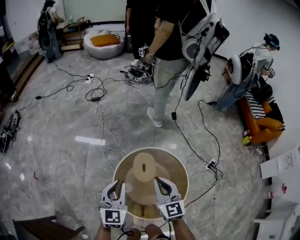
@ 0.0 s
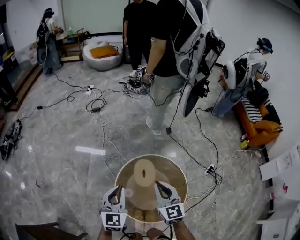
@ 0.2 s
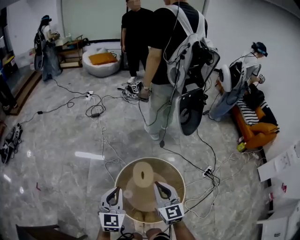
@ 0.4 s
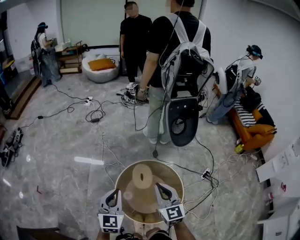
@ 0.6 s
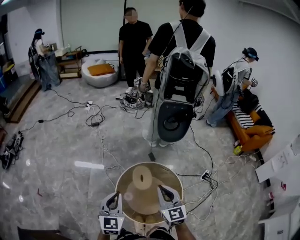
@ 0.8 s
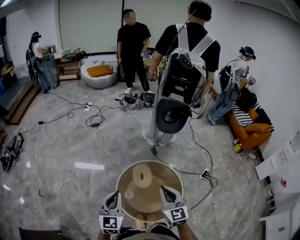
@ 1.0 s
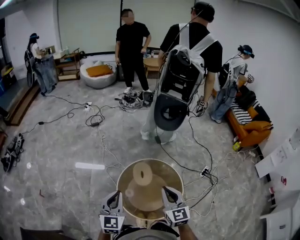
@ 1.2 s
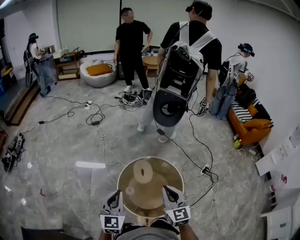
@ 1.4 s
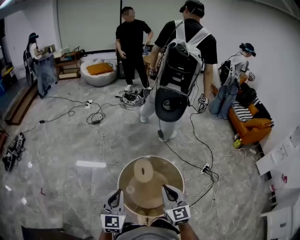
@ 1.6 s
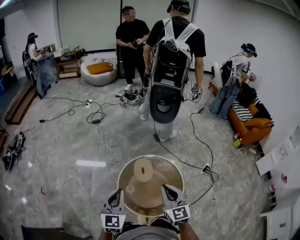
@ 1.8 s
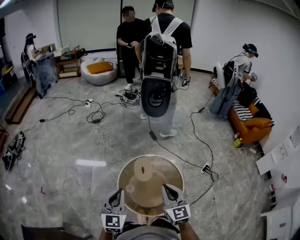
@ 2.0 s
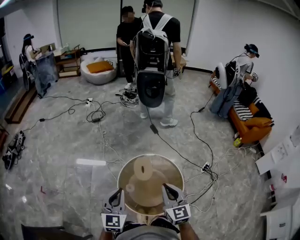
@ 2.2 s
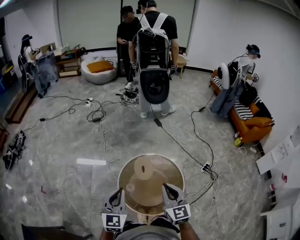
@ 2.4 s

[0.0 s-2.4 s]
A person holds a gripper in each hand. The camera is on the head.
0.0 to 1.2 s: The grippers both shift backward and upward by approximately 20 cm.
1.2 to 2.4 s: The grippers stay close to where they were, moving slightly.

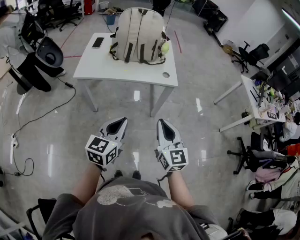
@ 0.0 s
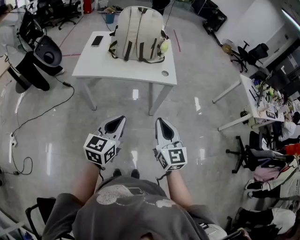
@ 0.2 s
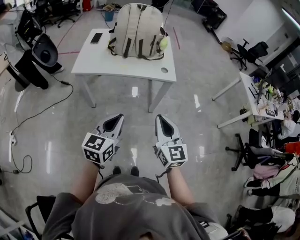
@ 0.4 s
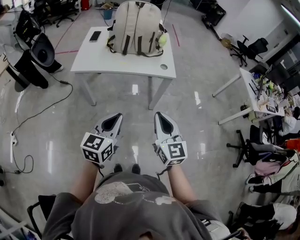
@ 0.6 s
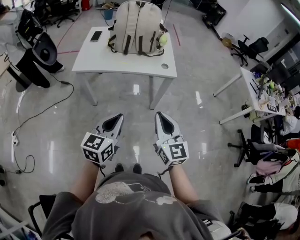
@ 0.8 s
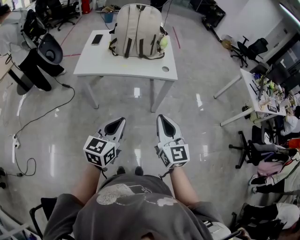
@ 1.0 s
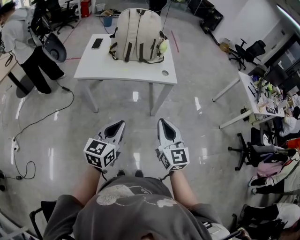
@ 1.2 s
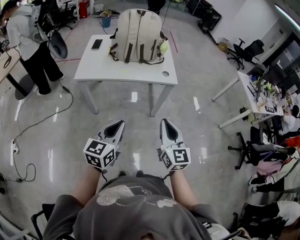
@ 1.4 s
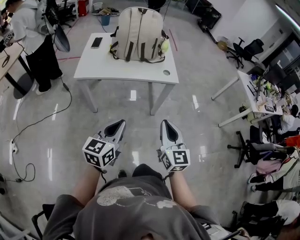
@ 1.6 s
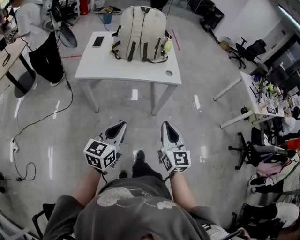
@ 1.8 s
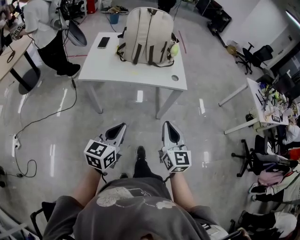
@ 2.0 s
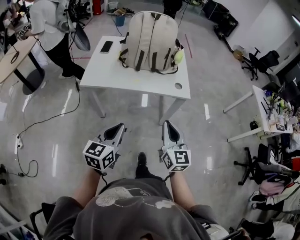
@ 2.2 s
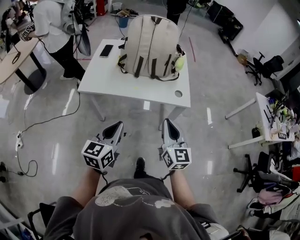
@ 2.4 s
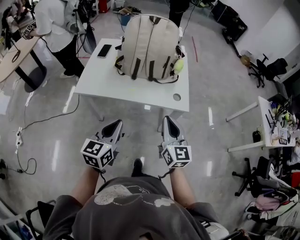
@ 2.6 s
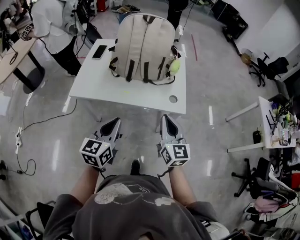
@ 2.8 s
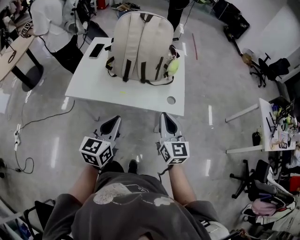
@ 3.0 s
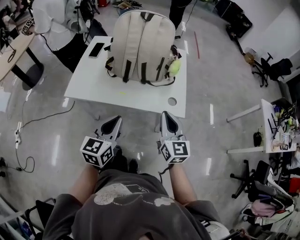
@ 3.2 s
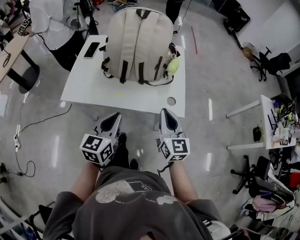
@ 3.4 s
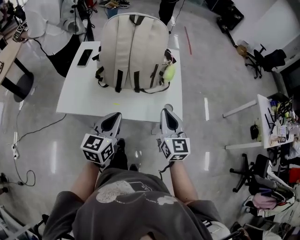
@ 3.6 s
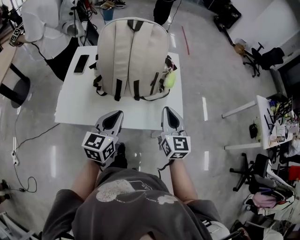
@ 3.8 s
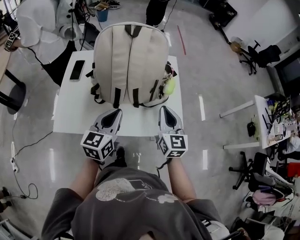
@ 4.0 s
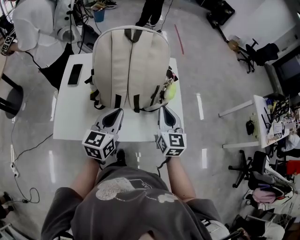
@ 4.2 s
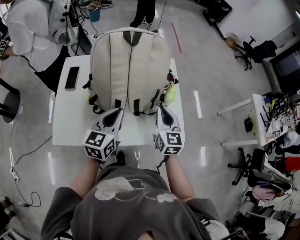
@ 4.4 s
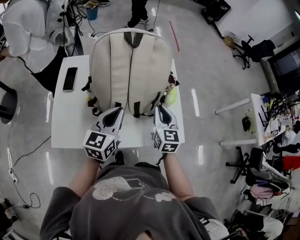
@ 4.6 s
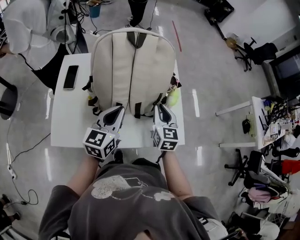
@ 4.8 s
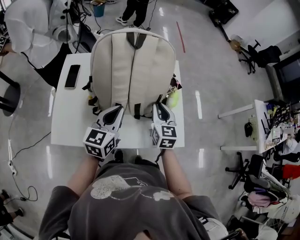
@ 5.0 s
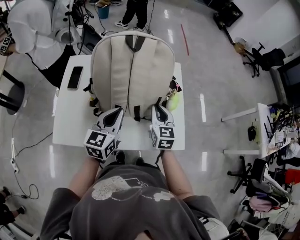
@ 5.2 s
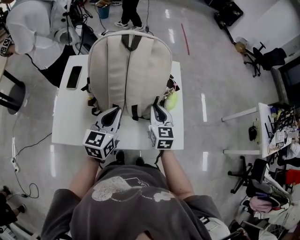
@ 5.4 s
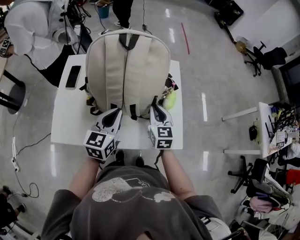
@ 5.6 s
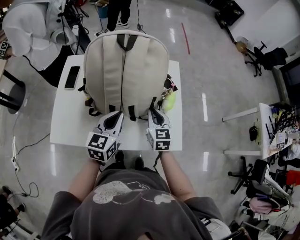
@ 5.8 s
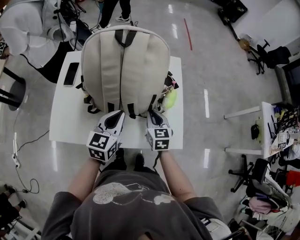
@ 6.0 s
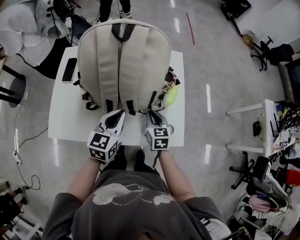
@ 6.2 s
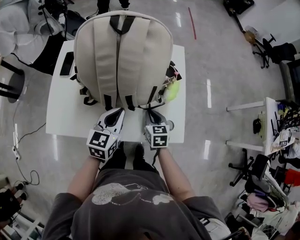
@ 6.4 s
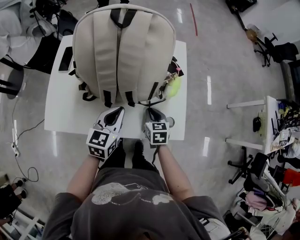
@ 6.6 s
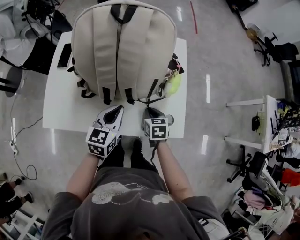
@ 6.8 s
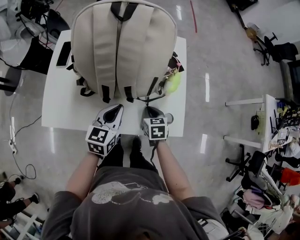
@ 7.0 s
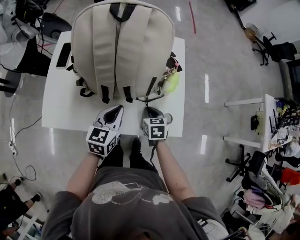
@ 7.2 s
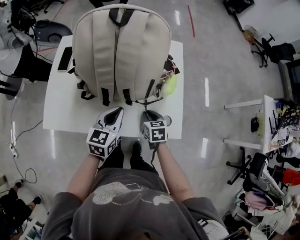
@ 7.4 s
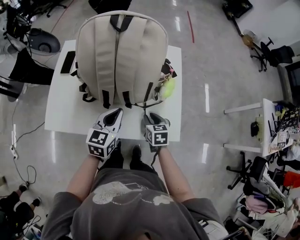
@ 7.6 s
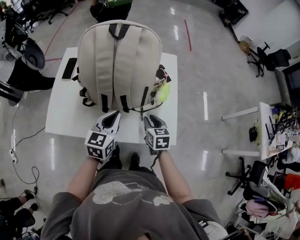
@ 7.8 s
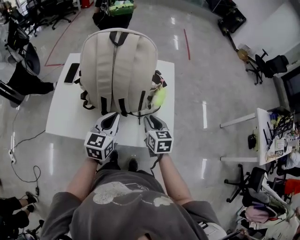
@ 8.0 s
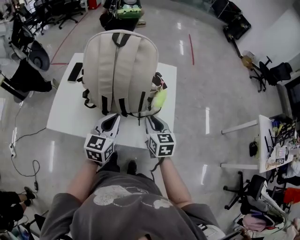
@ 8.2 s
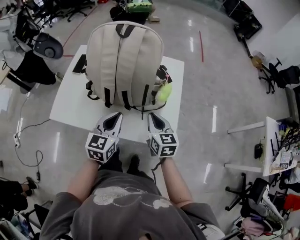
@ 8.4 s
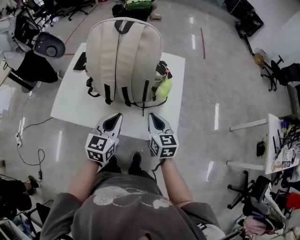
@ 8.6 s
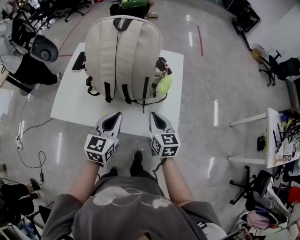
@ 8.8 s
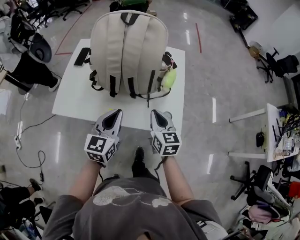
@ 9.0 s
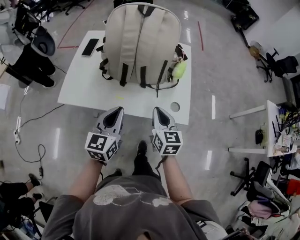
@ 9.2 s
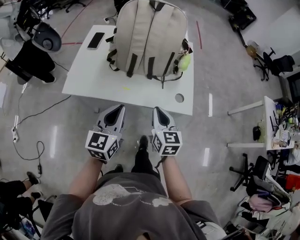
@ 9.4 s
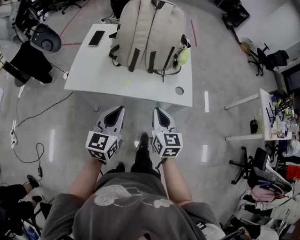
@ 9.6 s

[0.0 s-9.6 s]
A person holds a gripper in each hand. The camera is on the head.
0.0 to 1.6 s: The left gripper changes place by some 5 cm.
1.6 to 3.2 s: The two grippers go some 30 cm forward.
3.2 to 4.8 s: The two grippers go about 30 cm forward. The right gripper turns by about 20 degrees.
4.8 to 6.4 s: The left gripper travels downward and to the right by approximately 10 cm, while the right gripper travels downward by some 15 cm, and swivels roughly 20 degrees.
6.4 to 8.0 s: The right gripper heads upward, covering approximately 10 cm; the left gripper changes place by about 5 cm.
8.0 to 9.6 s: Both grippers move backward and to the left, about 25 cm. The right gripper closes up.

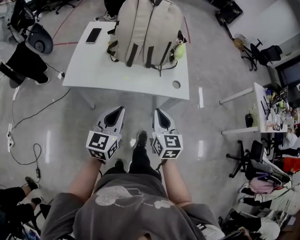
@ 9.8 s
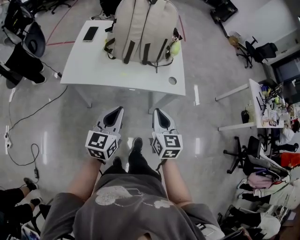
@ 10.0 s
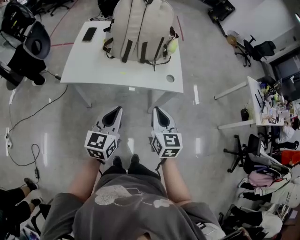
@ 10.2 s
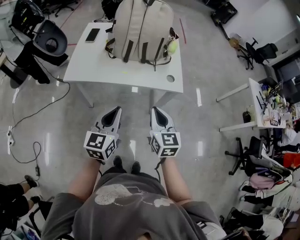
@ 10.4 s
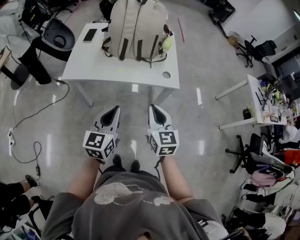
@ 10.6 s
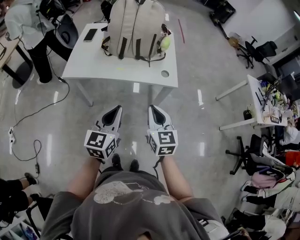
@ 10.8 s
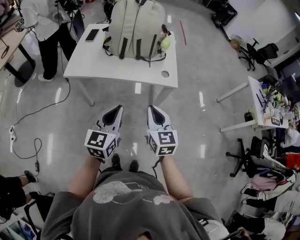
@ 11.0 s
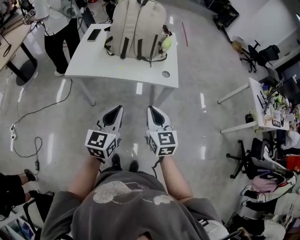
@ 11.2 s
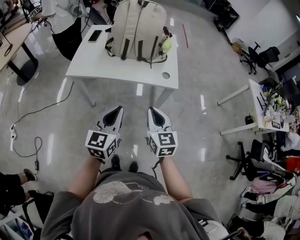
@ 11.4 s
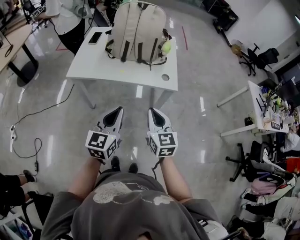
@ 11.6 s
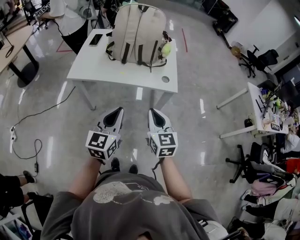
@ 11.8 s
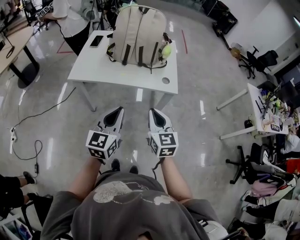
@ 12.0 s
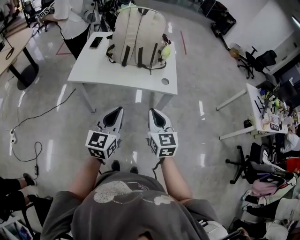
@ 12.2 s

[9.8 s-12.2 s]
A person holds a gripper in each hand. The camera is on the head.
9.8 to 11.0 s: The right gripper heads backward, covering approximately 10 cm. Meanwhile the left gripper moves backward and to the right, roughly 15 cm.
11.0 to 12.2 s: The grippers make only small movements.

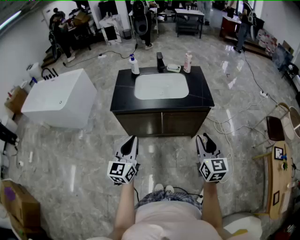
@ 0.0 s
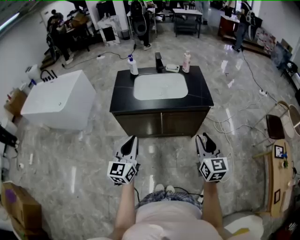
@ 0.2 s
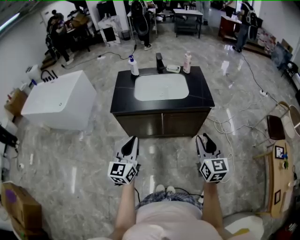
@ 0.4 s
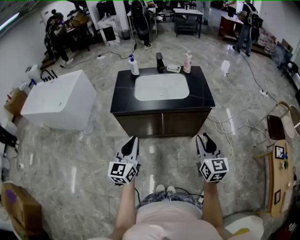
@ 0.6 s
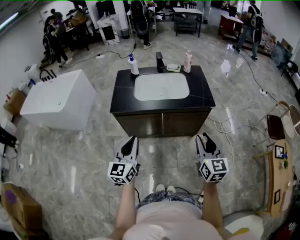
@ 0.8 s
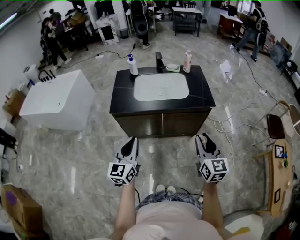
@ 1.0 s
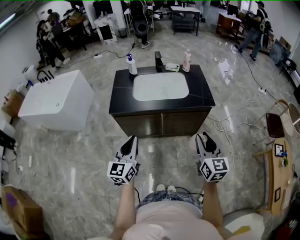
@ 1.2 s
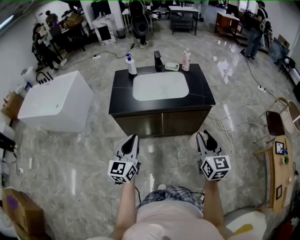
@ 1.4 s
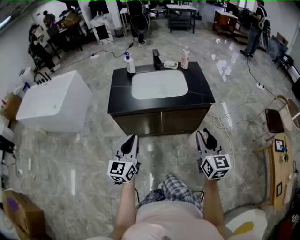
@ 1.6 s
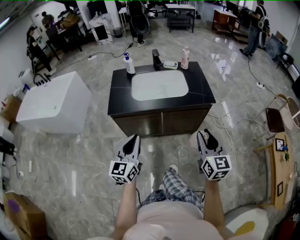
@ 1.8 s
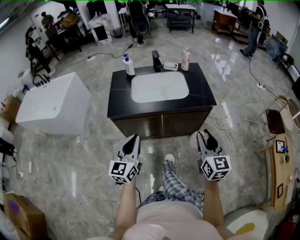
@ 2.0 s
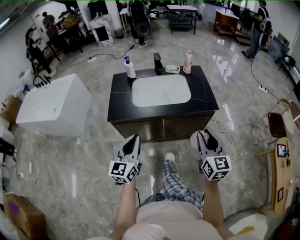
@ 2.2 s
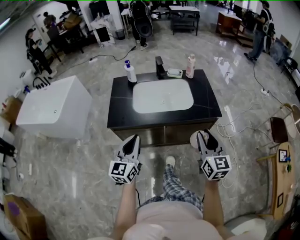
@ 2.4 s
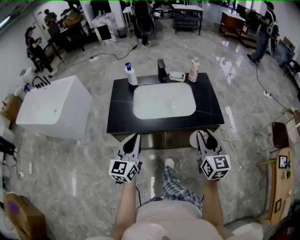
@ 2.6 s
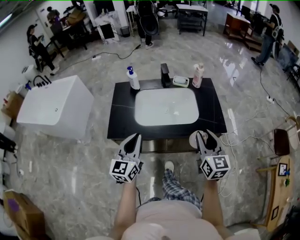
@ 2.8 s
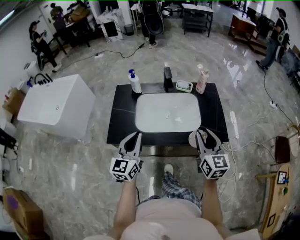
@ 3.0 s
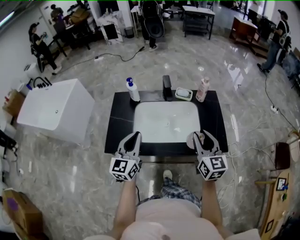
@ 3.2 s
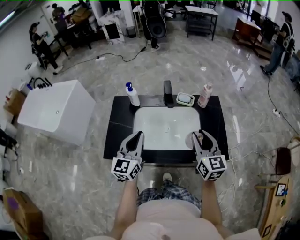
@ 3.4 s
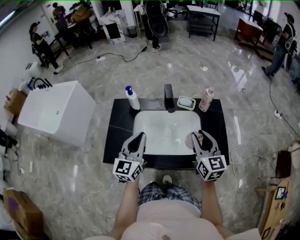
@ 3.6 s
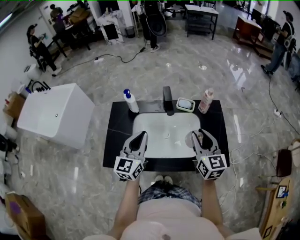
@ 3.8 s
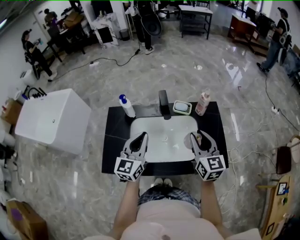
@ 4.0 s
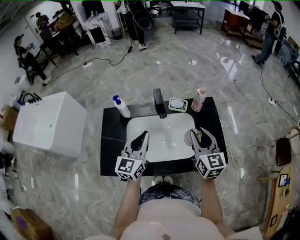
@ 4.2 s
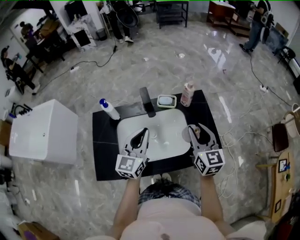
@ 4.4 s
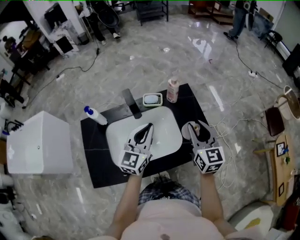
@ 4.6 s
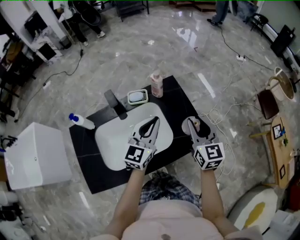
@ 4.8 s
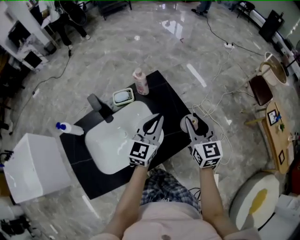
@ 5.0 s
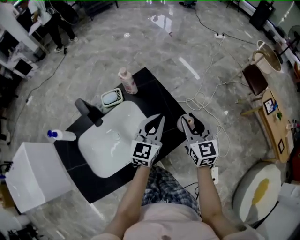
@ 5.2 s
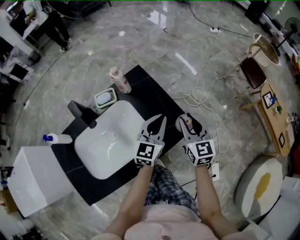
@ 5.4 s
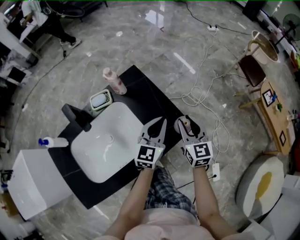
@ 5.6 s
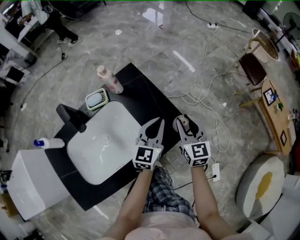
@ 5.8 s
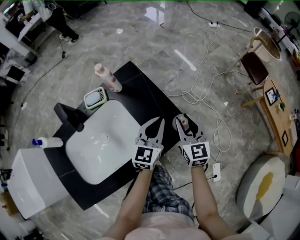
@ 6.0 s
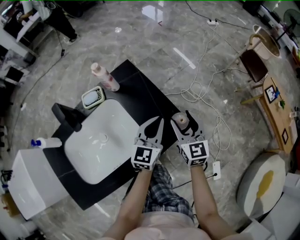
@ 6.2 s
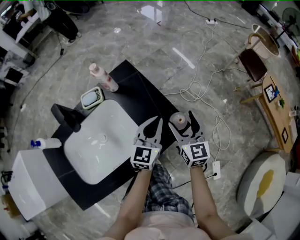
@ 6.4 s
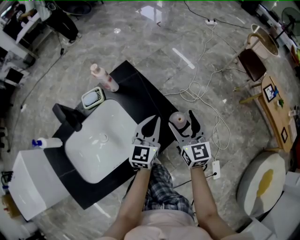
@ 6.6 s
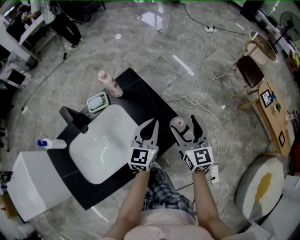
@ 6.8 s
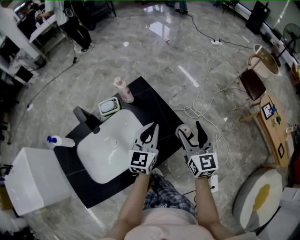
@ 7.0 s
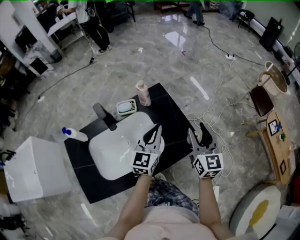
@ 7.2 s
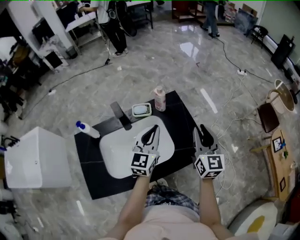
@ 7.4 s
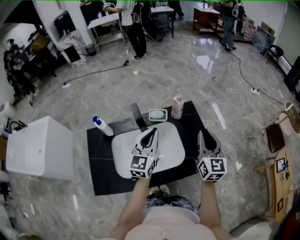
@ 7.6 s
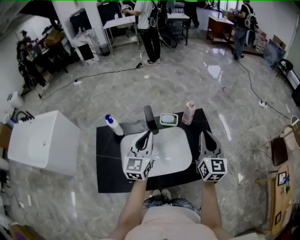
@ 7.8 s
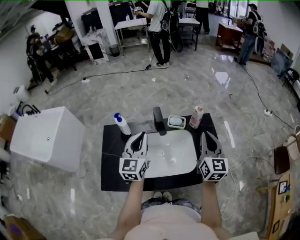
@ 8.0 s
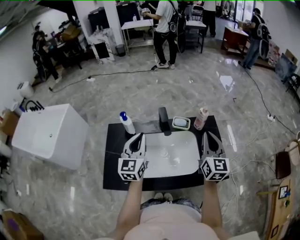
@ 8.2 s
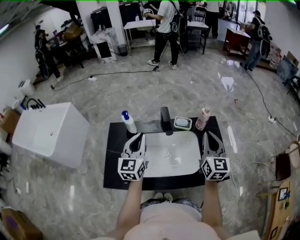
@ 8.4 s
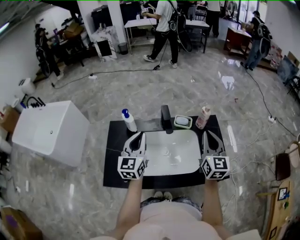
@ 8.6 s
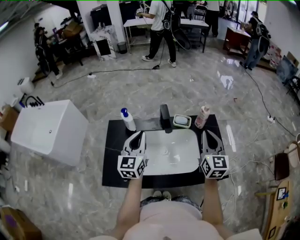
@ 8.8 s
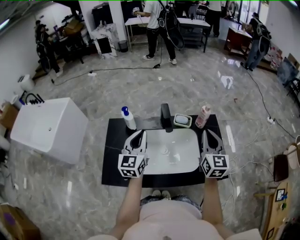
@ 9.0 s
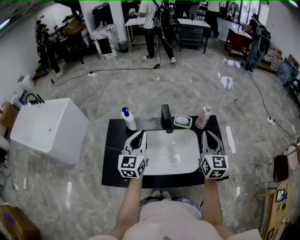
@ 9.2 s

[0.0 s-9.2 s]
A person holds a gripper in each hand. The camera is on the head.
0.0 to 1.6 s: The left gripper moves approximately 5 cm.
1.6 to 3.0 s: The two grippers go some 35 cm forward.
3.0 to 4.6 s: The two grippers go some 30 cm forward and to the right. The left gripper swivels roughly 30 degrees.
4.6 to 6.2 s: The right gripper shifts roughly 25 cm downward and to the right, and rotates roughly 20 degrees. Meanwhile the left gripper is displaced to the right, downward and forward by some 35 cm, and swivels approximately 20 degrees.
6.2 to 7.6 s: The right gripper shifts approximately 30 cm upward and to the left, and closes up. The left gripper moves to the left and upward, roughly 35 cm, and rotates some 30 degrees.
7.6 to 9.2 s: The left gripper shifts roughly 20 cm to the left. Meanwhile the right gripper travels to the left by roughly 10 cm.
